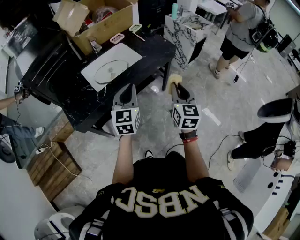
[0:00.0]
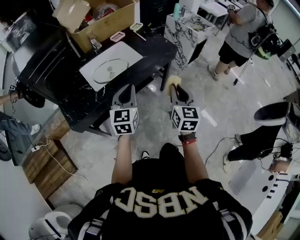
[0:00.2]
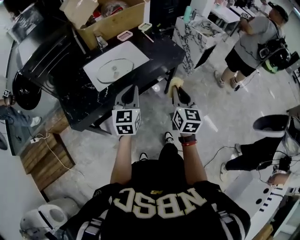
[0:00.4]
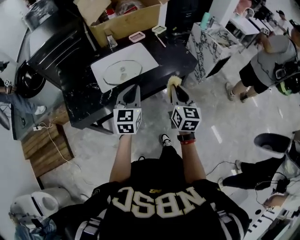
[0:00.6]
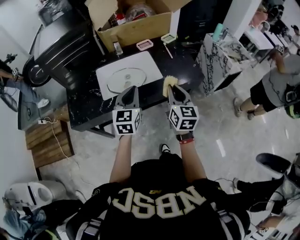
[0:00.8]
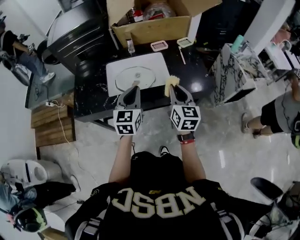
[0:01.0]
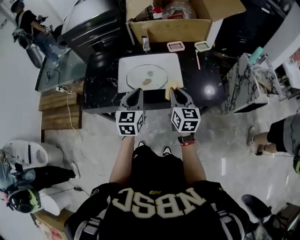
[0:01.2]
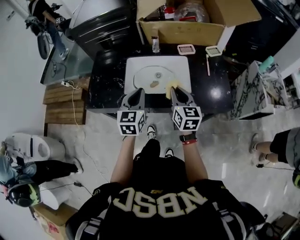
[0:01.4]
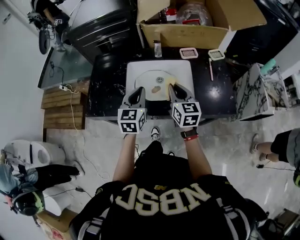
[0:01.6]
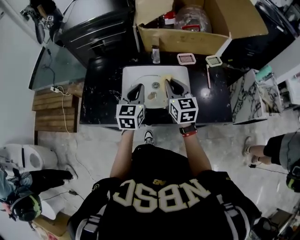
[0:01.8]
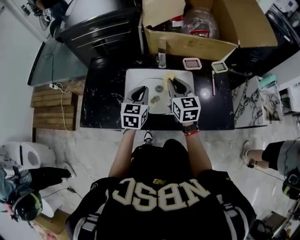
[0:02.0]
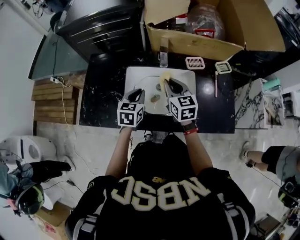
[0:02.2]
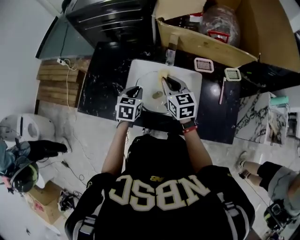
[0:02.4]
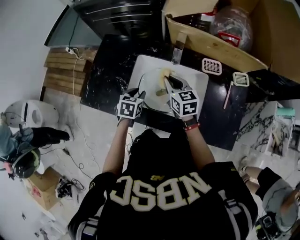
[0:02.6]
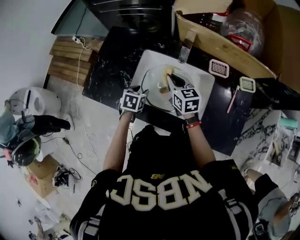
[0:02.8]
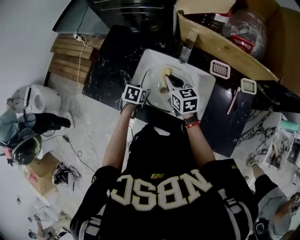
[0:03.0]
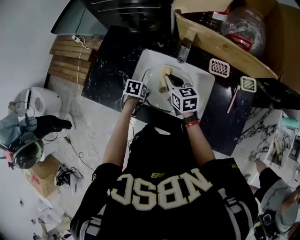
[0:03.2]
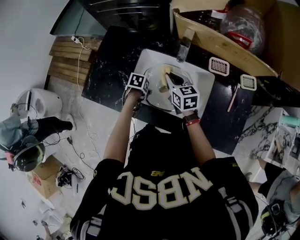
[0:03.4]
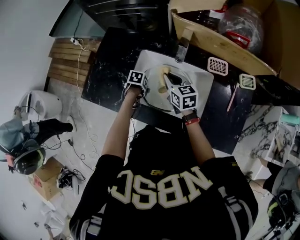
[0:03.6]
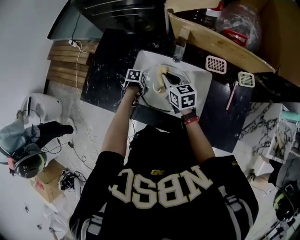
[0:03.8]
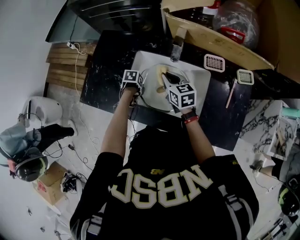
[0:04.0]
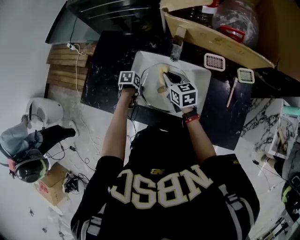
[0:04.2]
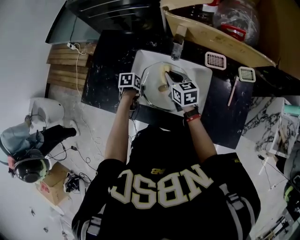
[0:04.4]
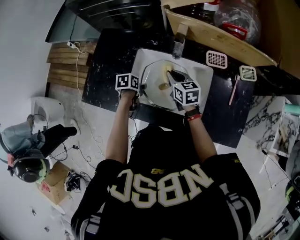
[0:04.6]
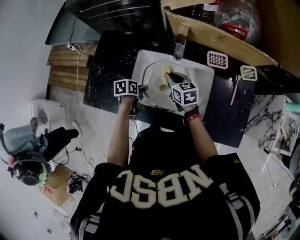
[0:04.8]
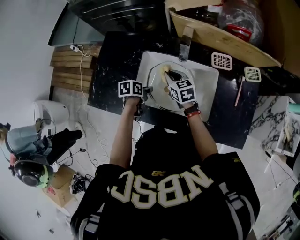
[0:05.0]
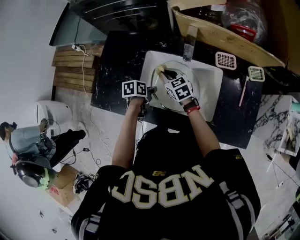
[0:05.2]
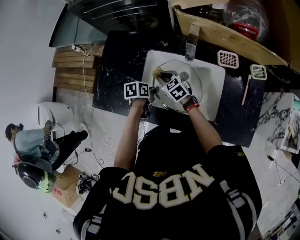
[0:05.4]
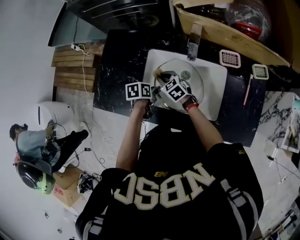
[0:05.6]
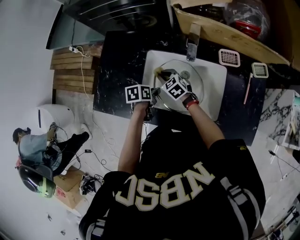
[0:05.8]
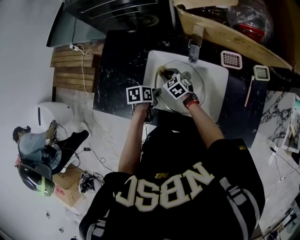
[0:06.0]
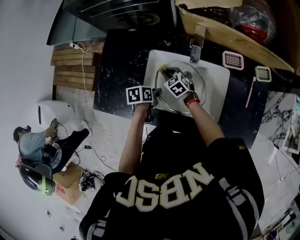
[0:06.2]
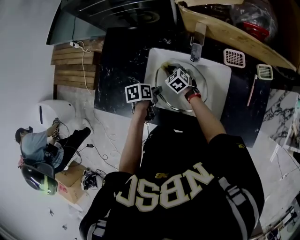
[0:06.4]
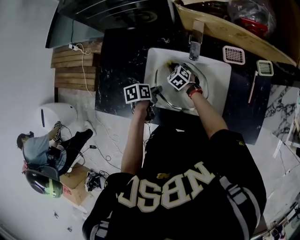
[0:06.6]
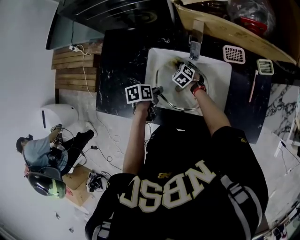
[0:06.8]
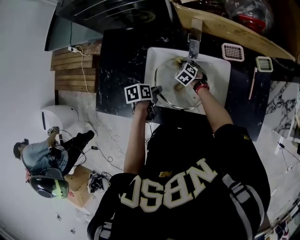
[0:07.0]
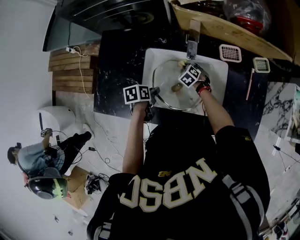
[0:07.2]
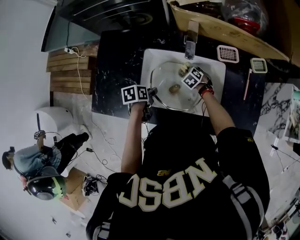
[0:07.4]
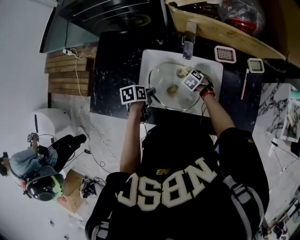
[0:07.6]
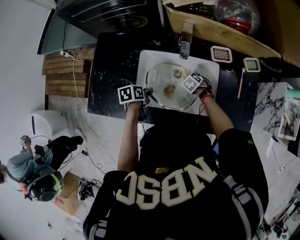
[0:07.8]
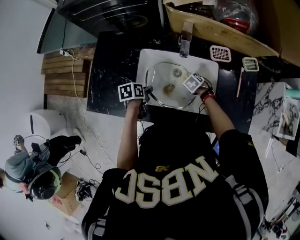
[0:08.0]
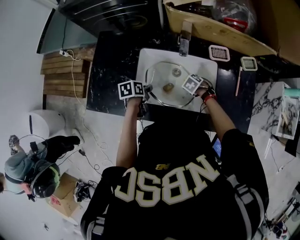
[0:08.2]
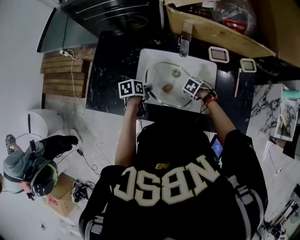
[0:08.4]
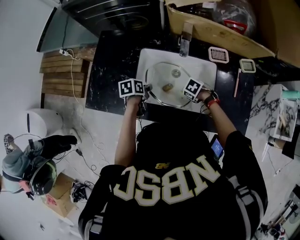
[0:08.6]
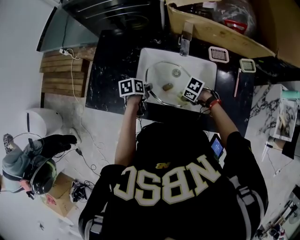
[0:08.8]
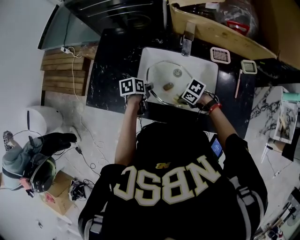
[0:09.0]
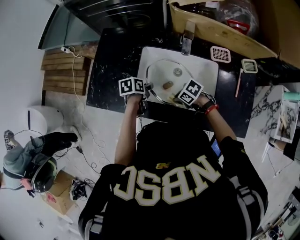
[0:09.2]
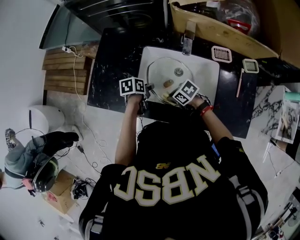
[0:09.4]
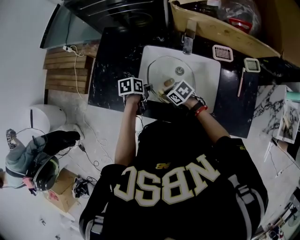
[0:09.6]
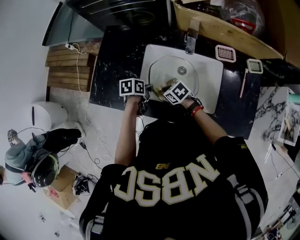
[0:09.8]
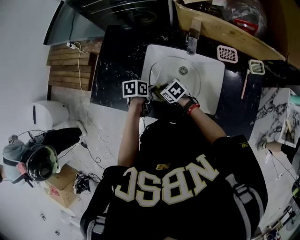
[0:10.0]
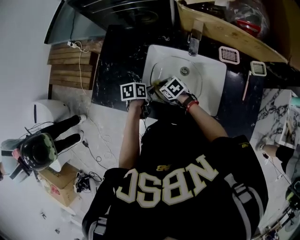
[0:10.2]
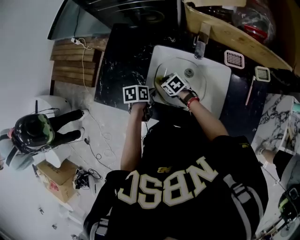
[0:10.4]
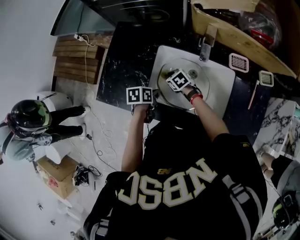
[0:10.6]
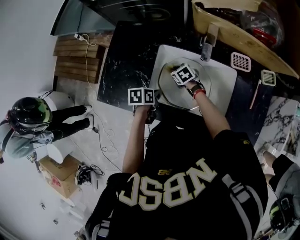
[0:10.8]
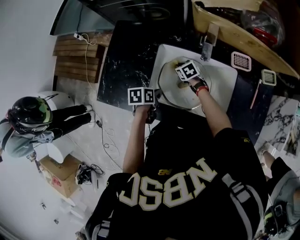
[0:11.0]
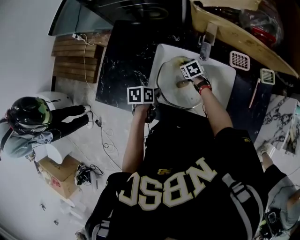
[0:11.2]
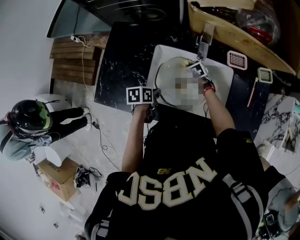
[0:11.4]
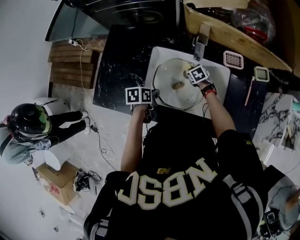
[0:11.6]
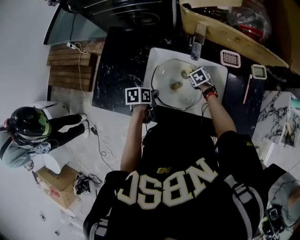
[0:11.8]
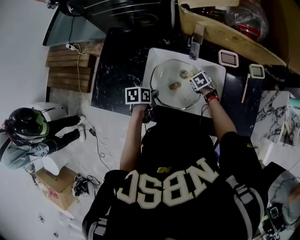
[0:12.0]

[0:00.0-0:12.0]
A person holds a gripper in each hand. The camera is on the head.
0:00.0 to 0:01.6: The right gripper moves some 40 cm, and swivels roughly 50 degrees. The left gripper changes place by roughly 25 cm, and rotates roughly 40 degrees.
0:01.6 to 0:03.0: The left gripper moves downward and forward, about 25 cm, points its fingers approximately 50 degrees further downward, and opens its fingers; the right gripper heads forward, downward and to the left, covering approximately 20 cm, and turns by some 30 degrees.
0:03.0 to 0:04.4: The left gripper rotates roughly 20 degrees, and closes.
0:04.4 to 0:06.0: The right gripper moves downward and to the left, approximately 15 cm, and changes its angle by roughly 30 degrees.
0:06.0 to 0:07.6: The right gripper moves approximately 20 cm, and points its fingers approximately 30 degrees further downward.
0:07.6 to 0:09.0: The right gripper ends up approximately 20 cm from where it was, and rotates about 40 degrees.
0:09.0 to 0:10.4: The right gripper ends up approximately 20 cm from where it was, and swivels roughly 30 degrees, while the left gripper closes its fingers.
0:10.4 to 0:12.0: The right gripper shifts by roughly 25 cm, and rotates roughly 30 degrees.

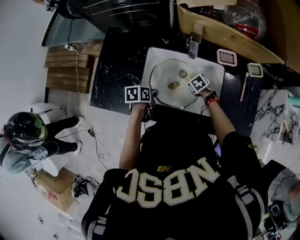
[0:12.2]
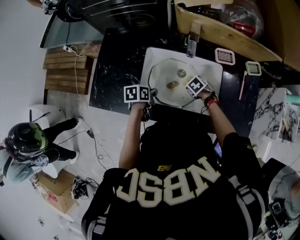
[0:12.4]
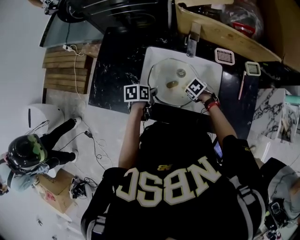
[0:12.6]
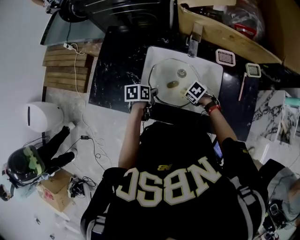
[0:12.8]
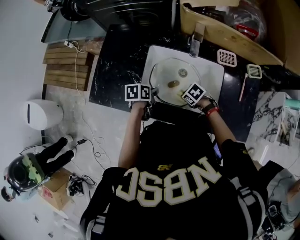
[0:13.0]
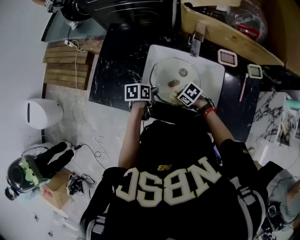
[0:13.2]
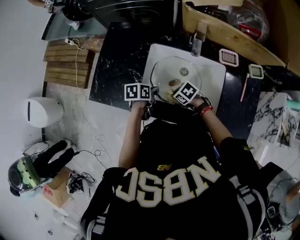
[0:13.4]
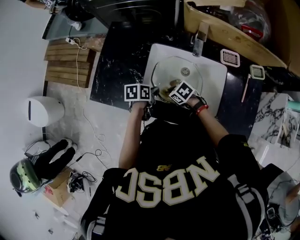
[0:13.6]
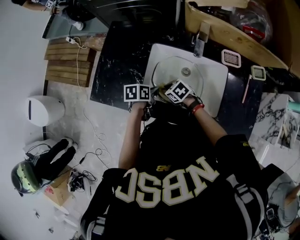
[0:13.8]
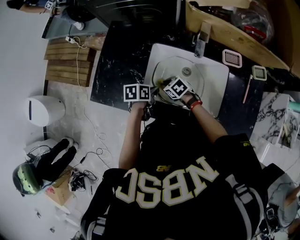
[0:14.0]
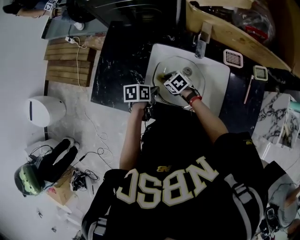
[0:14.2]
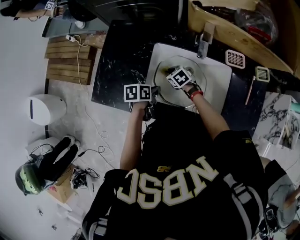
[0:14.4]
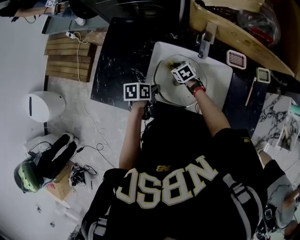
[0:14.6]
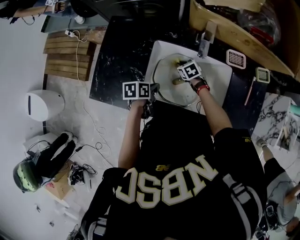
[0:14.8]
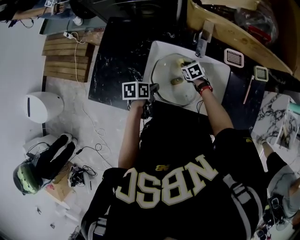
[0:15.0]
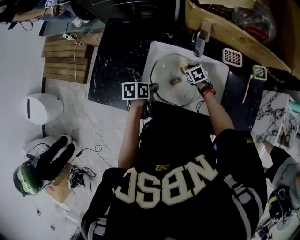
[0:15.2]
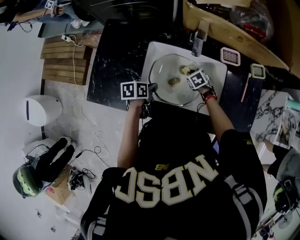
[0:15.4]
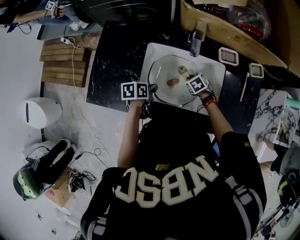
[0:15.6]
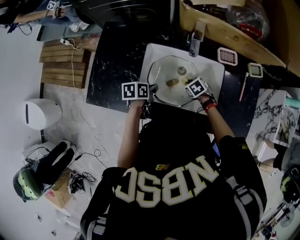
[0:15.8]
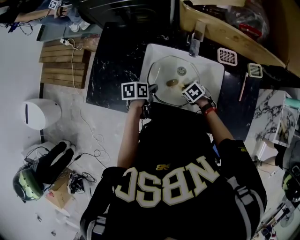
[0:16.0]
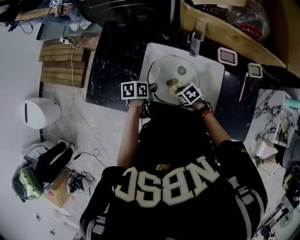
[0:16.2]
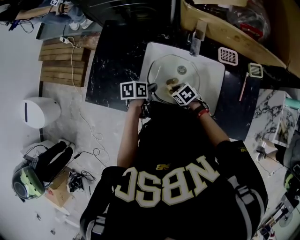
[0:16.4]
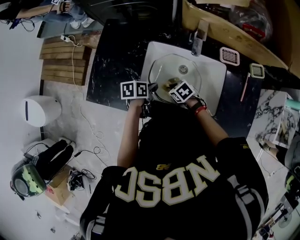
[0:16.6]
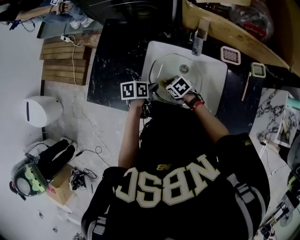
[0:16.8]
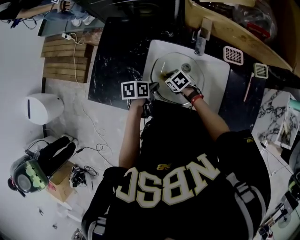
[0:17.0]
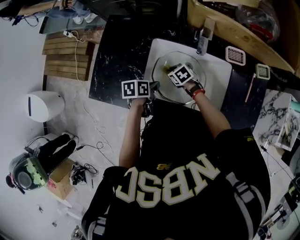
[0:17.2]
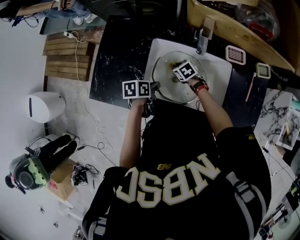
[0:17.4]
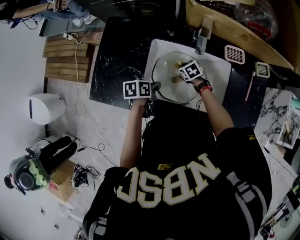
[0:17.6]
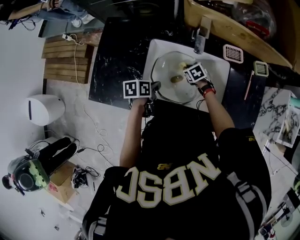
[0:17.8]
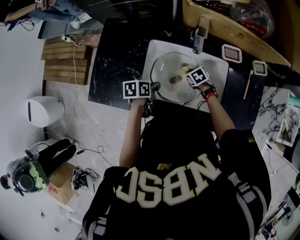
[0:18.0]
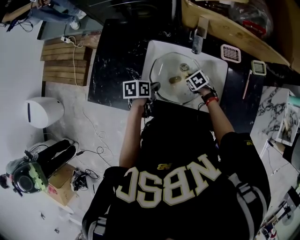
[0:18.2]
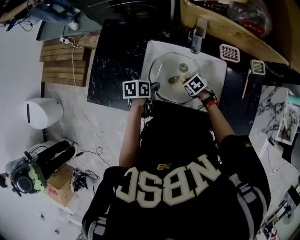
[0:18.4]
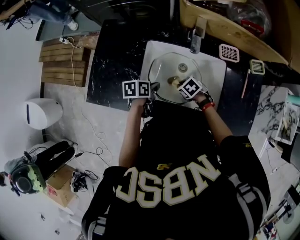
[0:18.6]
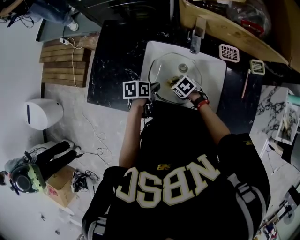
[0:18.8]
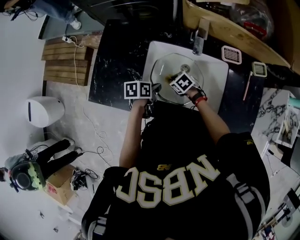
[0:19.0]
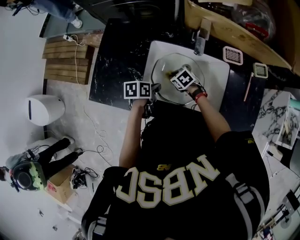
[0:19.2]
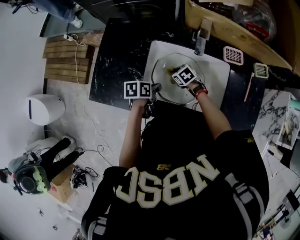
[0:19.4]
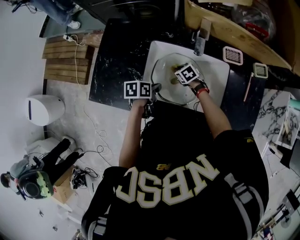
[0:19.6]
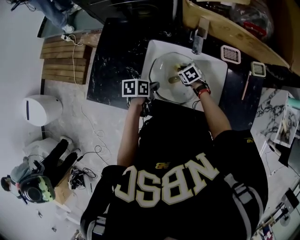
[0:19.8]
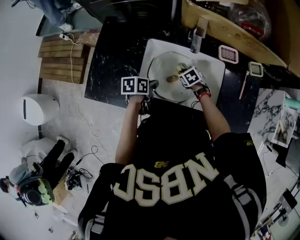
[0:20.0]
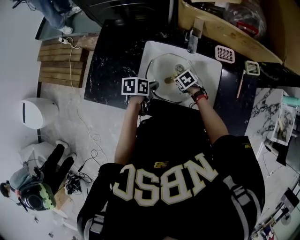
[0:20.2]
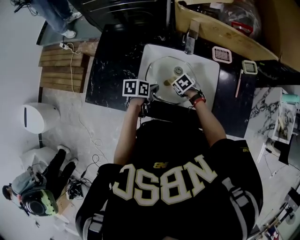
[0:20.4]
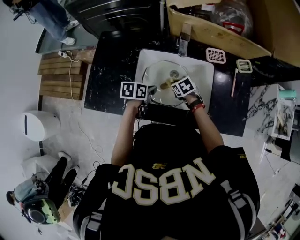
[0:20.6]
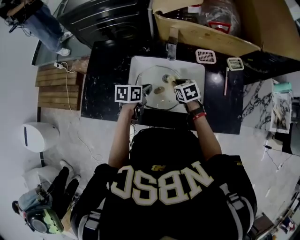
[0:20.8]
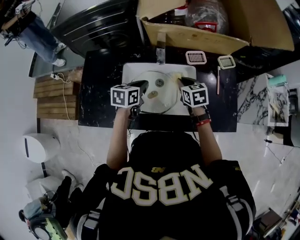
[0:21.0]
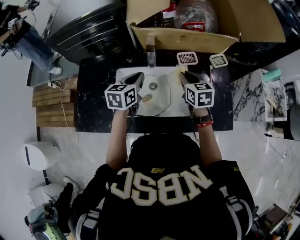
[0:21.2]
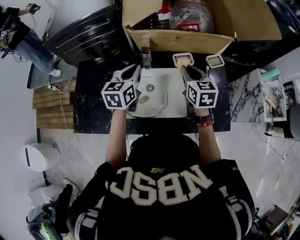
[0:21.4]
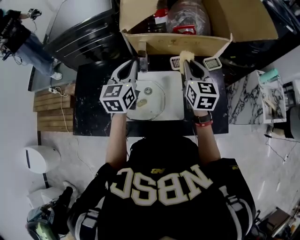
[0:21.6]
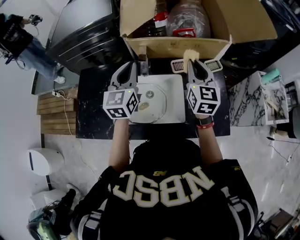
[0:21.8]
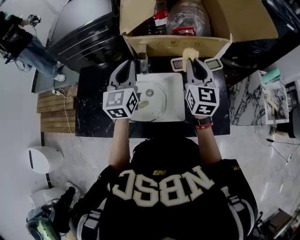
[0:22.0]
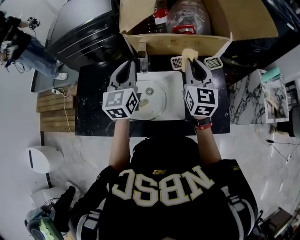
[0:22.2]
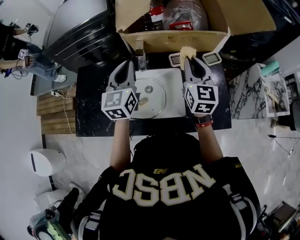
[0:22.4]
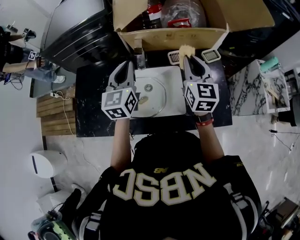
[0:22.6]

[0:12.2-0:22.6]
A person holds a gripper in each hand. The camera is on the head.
0:12.2 to 0:13.6: The right gripper moves some 20 cm, and turns by approximately 30 degrees.
0:13.6 to 0:15.2: The right gripper changes place by some 20 cm, and rotates roughly 30 degrees.
0:15.2 to 0:16.6: The right gripper shifts by approximately 15 cm, and turns by approximately 20 degrees.
0:16.6 to 0:18.2: The right gripper changes place by about 10 cm.
0:18.2 to 0:19.6: The right gripper changes place by about 10 cm.
0:19.6 to 0:21.2: The right gripper is displaced upward and to the right by some 35 cm, and swivels roughly 50 degrees; the left gripper travels upward, to the right and forward by about 25 cm, and turns by roughly 40 degrees.
0:21.2 to 0:22.6: The two grippers go roughly 15 cm upward. The right gripper turns by about 30 degrees, while the left gripper changes its angle by some 30 degrees.

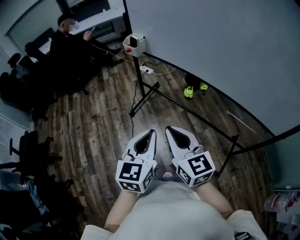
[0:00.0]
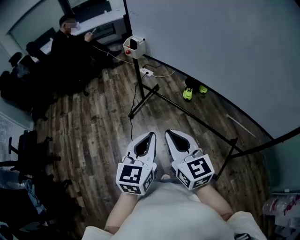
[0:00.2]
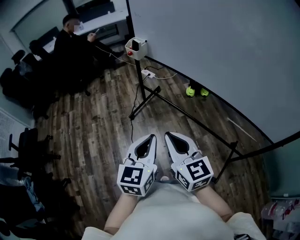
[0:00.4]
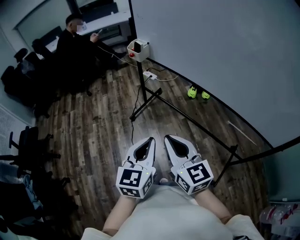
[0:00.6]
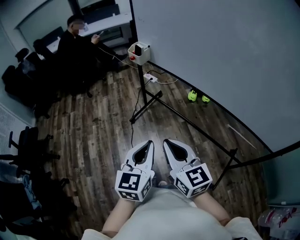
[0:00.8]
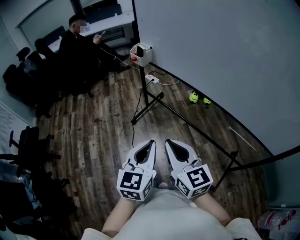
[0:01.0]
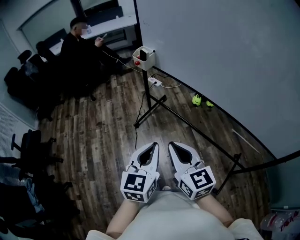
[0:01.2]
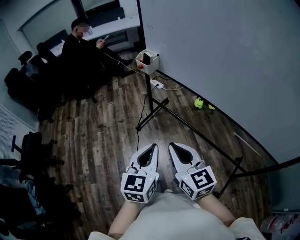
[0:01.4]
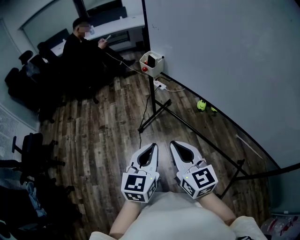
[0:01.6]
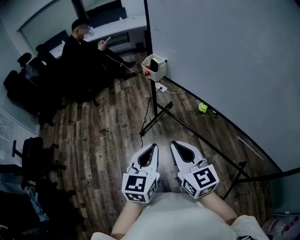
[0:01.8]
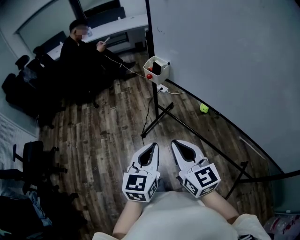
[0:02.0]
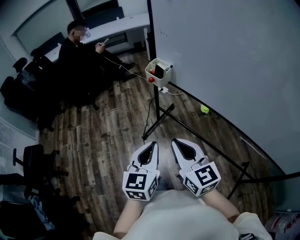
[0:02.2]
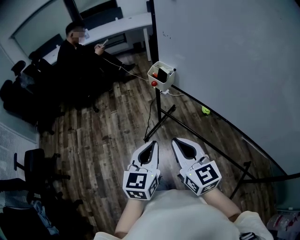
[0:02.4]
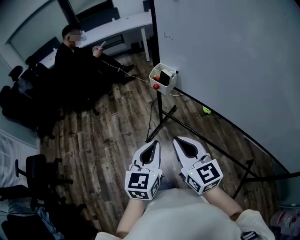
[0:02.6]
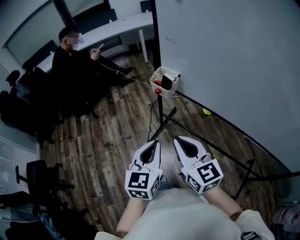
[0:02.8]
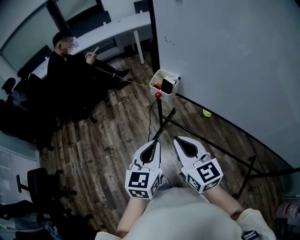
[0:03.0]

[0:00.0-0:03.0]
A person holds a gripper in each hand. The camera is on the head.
0:00.0 to 0:01.6: Both grippers move forward, about 10 cm.
0:01.6 to 0:03.0: The right gripper goes some 25 cm forward and to the left. Meanwhile the left gripper travels forward by about 25 cm.
